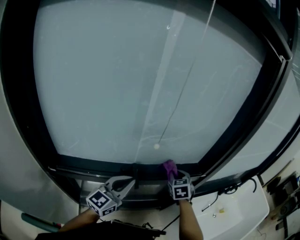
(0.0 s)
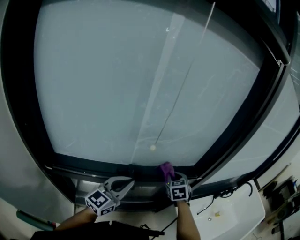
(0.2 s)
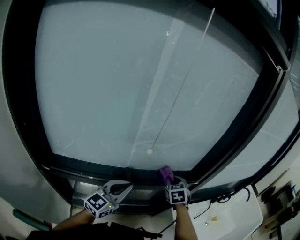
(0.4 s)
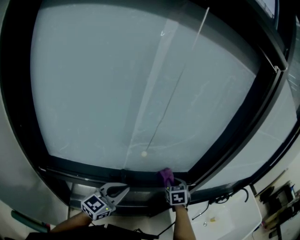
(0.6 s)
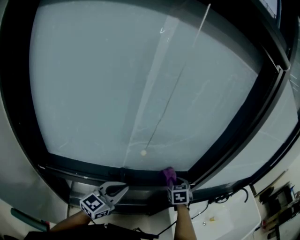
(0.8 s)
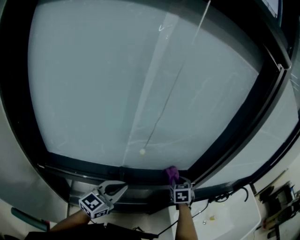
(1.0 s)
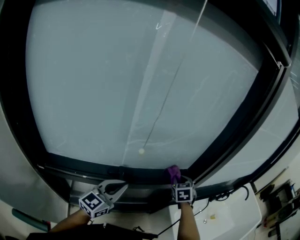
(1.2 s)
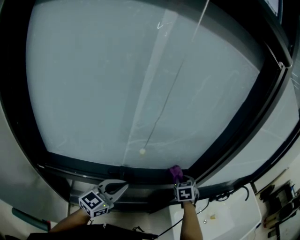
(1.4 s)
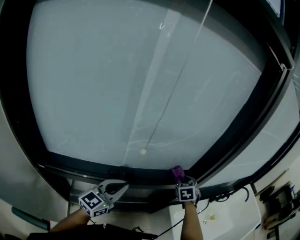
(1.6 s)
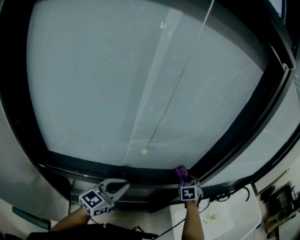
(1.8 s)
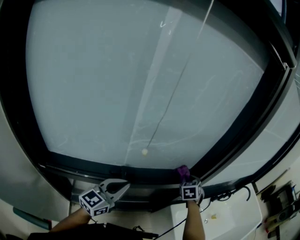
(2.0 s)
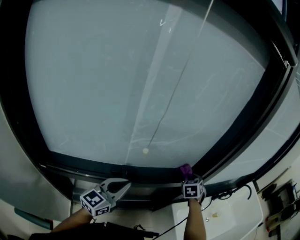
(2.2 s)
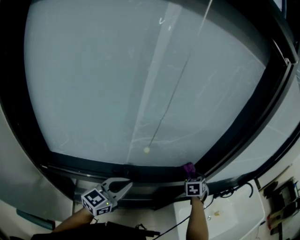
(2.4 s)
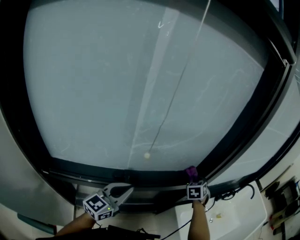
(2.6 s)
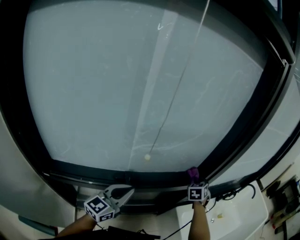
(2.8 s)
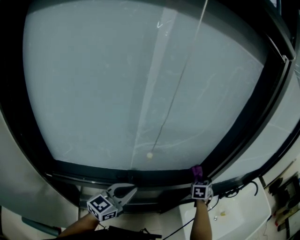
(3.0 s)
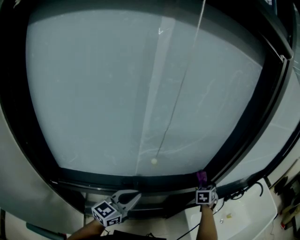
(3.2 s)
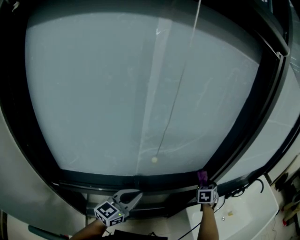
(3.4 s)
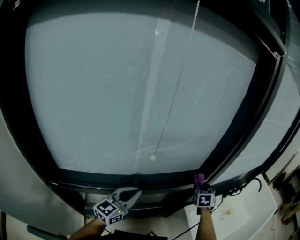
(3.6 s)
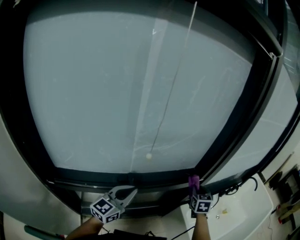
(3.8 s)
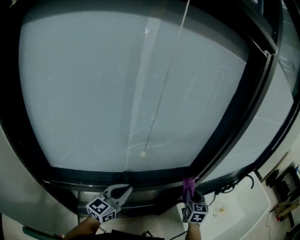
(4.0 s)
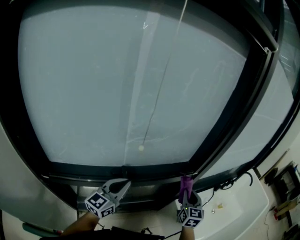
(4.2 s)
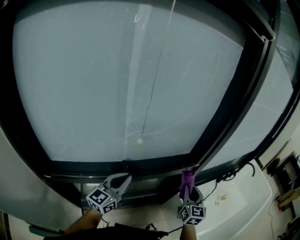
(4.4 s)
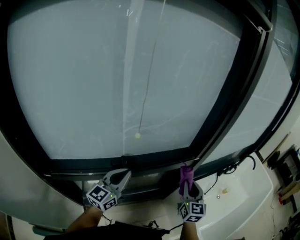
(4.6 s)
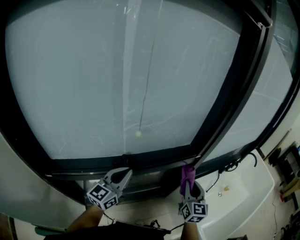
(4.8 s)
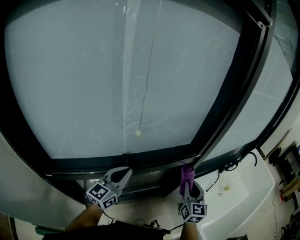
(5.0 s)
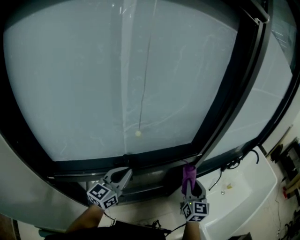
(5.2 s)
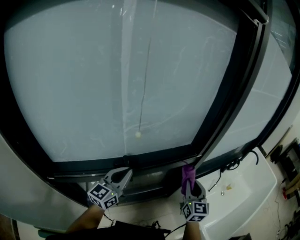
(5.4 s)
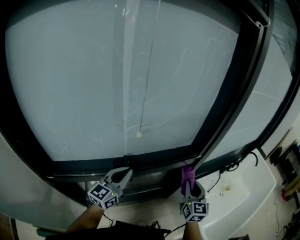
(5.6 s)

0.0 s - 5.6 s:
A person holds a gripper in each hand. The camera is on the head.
0.0 s - 1.4 s: The right gripper travels to the right and forward by about 10 cm.
1.4 s - 2.8 s: The right gripper travels to the right by roughly 5 cm.
2.8 s - 4.2 s: The right gripper moves backward, approximately 15 cm, and changes its angle by approximately 40 degrees.
4.2 s - 5.6 s: The grippers move only a little.

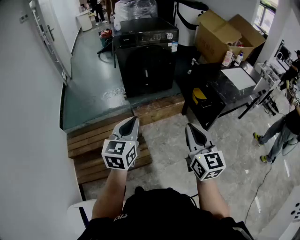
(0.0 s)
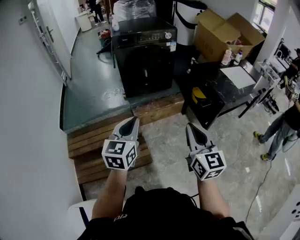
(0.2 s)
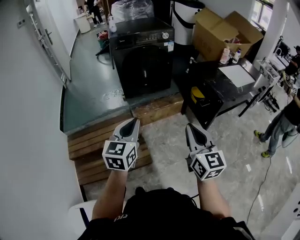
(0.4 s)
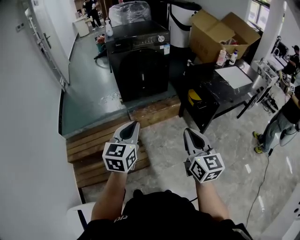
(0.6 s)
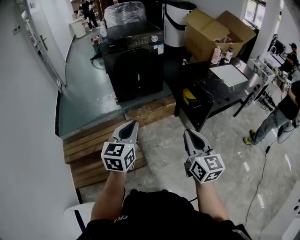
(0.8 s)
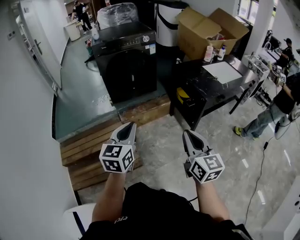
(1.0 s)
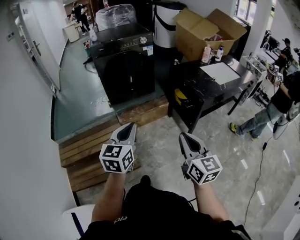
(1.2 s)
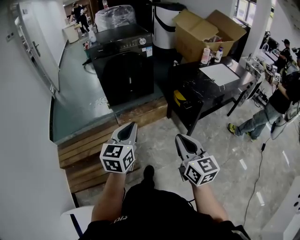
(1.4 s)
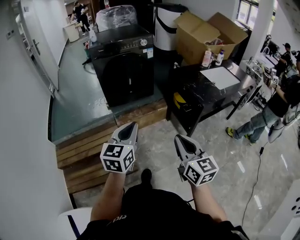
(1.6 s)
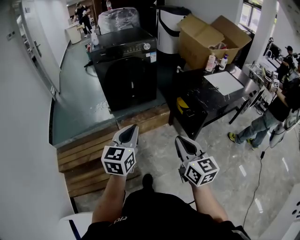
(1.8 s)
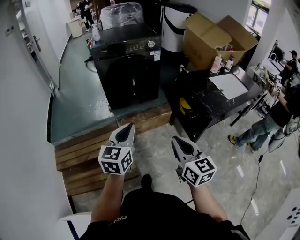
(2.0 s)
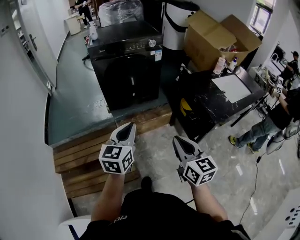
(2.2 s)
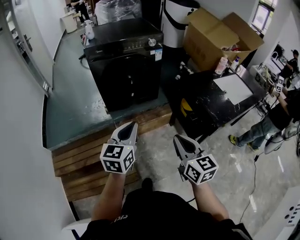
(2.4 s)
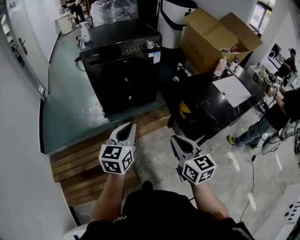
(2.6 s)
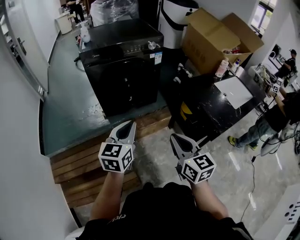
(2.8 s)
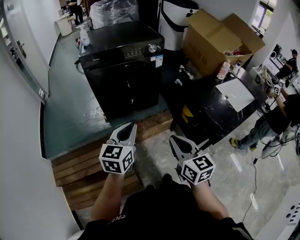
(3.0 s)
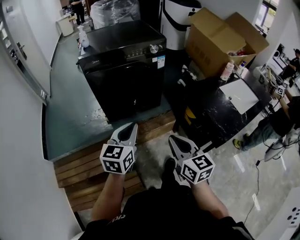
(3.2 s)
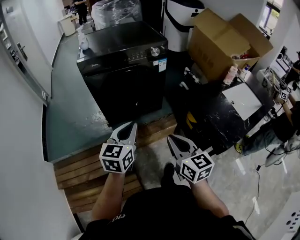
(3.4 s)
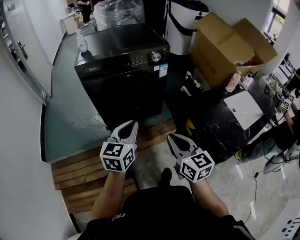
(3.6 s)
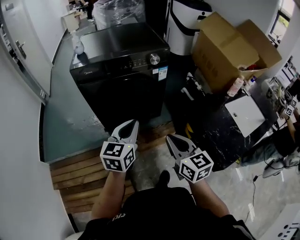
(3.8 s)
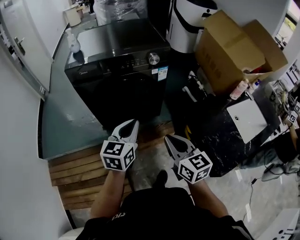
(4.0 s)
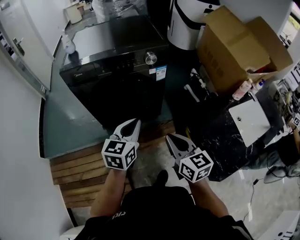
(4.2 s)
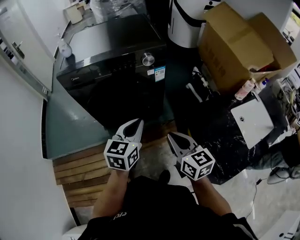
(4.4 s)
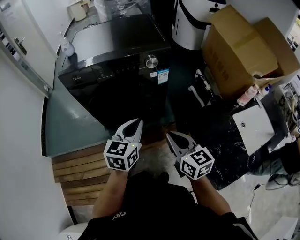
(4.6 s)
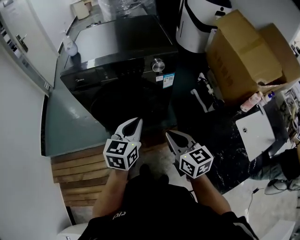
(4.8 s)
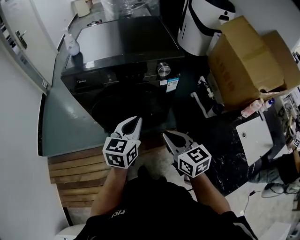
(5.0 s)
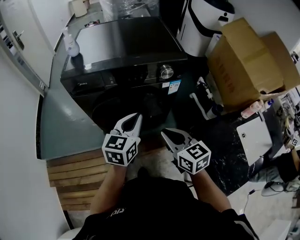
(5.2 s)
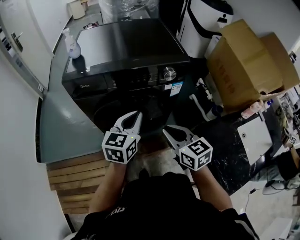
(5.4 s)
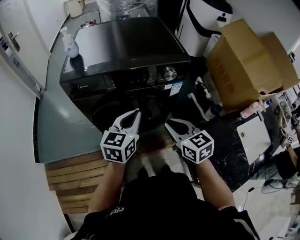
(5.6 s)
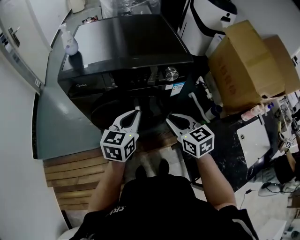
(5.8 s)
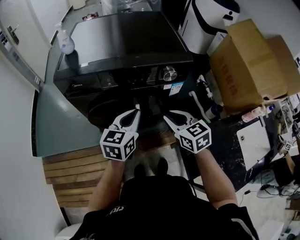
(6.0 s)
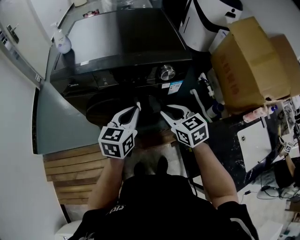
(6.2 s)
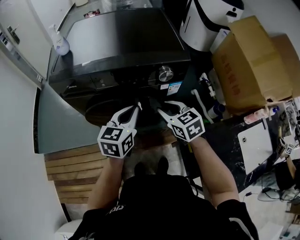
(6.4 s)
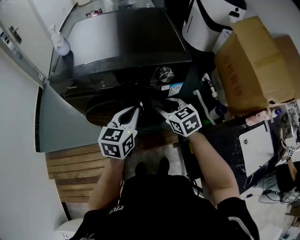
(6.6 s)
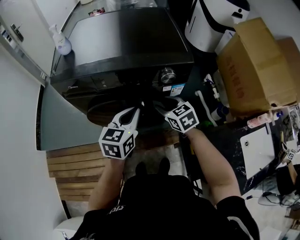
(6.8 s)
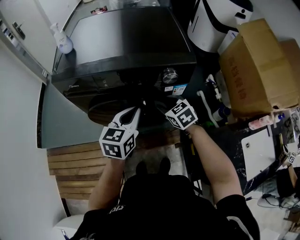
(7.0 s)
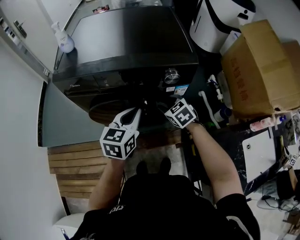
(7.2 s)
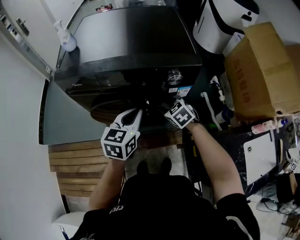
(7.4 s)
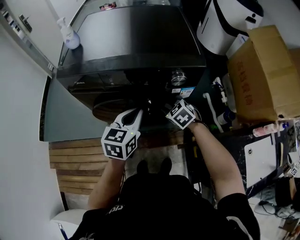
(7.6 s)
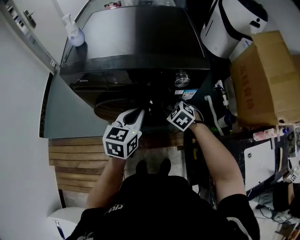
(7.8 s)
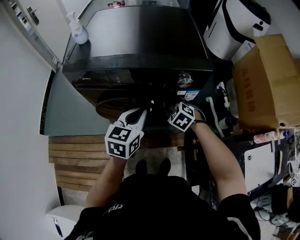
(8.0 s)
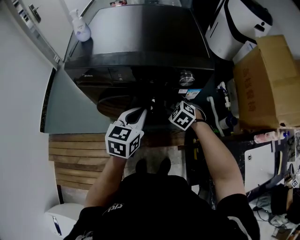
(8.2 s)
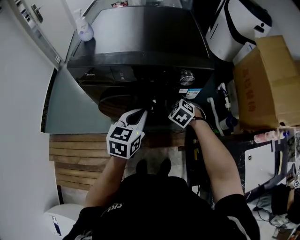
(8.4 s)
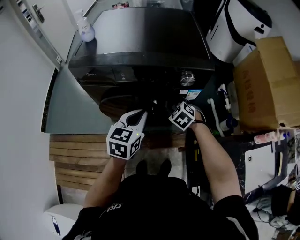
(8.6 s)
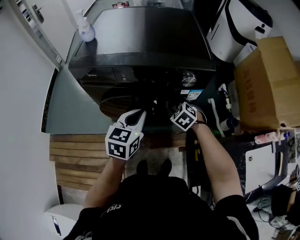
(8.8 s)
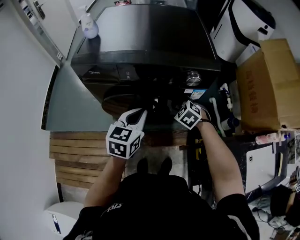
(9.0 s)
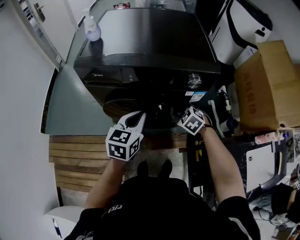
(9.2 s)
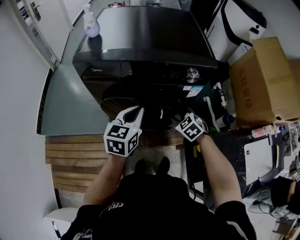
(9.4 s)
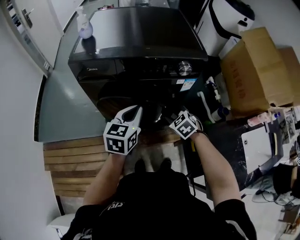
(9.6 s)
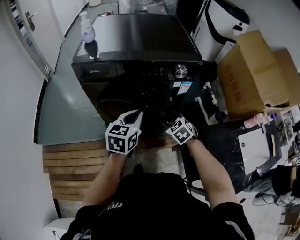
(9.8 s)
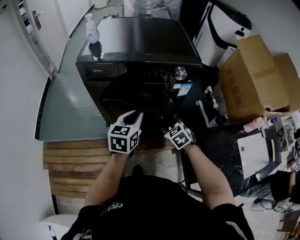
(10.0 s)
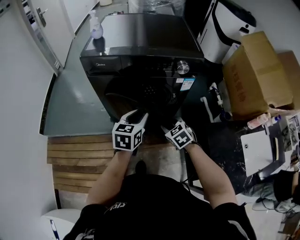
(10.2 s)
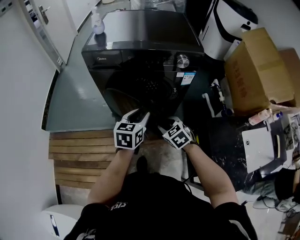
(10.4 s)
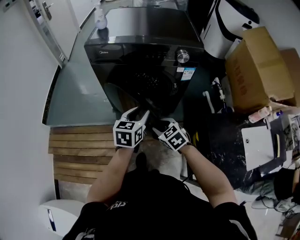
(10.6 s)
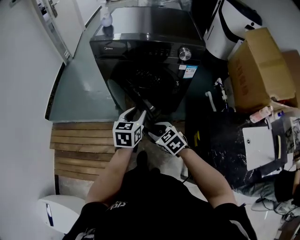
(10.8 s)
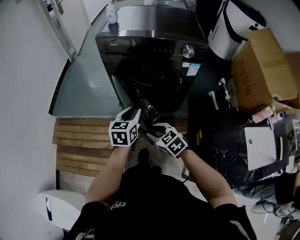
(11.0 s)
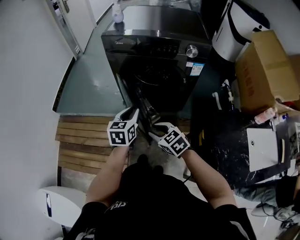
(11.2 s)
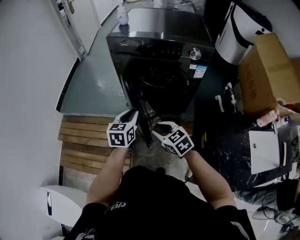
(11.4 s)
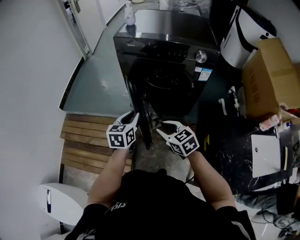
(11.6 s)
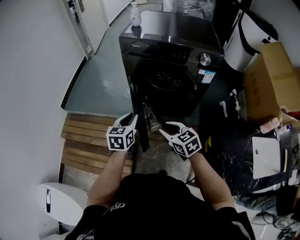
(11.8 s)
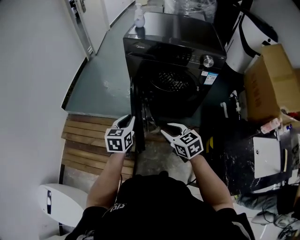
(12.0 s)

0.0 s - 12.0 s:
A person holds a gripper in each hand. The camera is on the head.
0.0 s - 1.6 s: Both grippers move to the right, some 15 cm.
1.6 s - 3.0 s: Both grippers move forward, some 30 cm.
3.0 s - 4.4 s: The left gripper moves forward and to the right, roughly 30 cm, while the right gripper shifts some 25 cm forward.
4.4 s - 6.0 s: The right gripper heads forward, covering roughly 20 cm, and changes its angle by approximately 20 degrees, while the left gripper heads forward and to the left, covering some 15 cm.
6.0 s - 7.6 s: The right gripper travels downward and forward by roughly 15 cm, turns by approximately 30 degrees, and opens its fingers.
7.6 s - 9.0 s: The grippers move only a little.
9.0 s - 10.4 s: The right gripper travels backward by some 20 cm, and turns by some 20 degrees; the left gripper moves backward, about 10 cm, and opens.
10.4 s - 12.0 s: The right gripper heads to the left, backward and upward, covering about 20 cm, and swivels some 20 degrees. Meanwhile the left gripper is displaced to the left by approximately 20 cm.

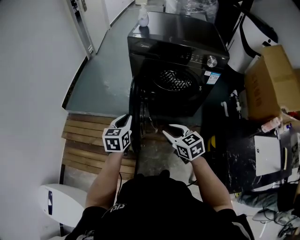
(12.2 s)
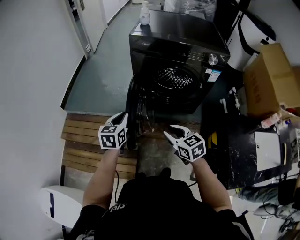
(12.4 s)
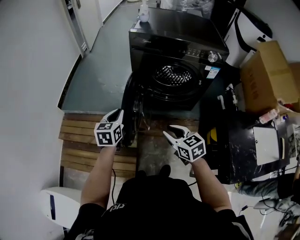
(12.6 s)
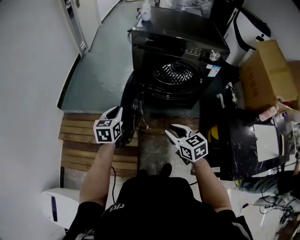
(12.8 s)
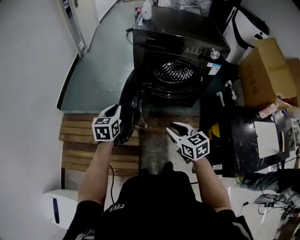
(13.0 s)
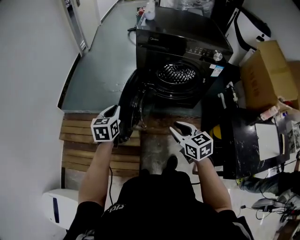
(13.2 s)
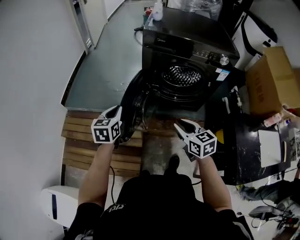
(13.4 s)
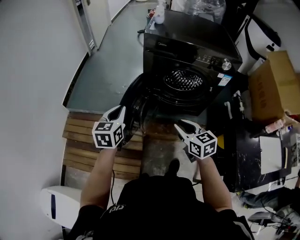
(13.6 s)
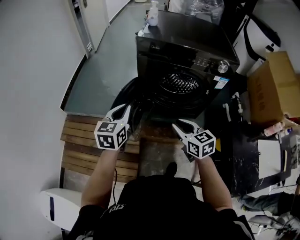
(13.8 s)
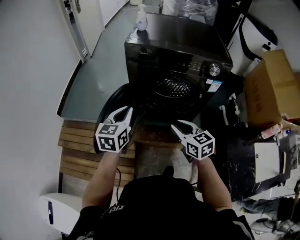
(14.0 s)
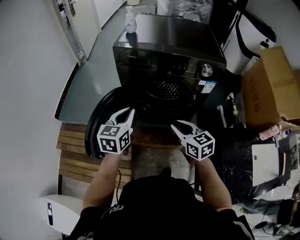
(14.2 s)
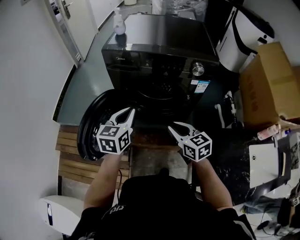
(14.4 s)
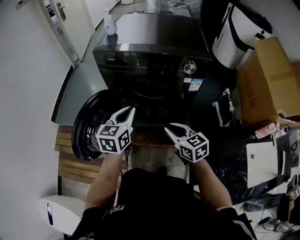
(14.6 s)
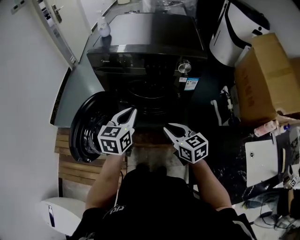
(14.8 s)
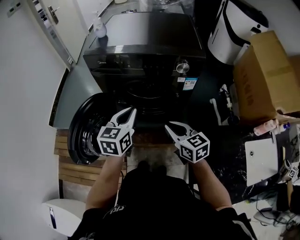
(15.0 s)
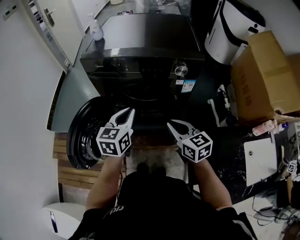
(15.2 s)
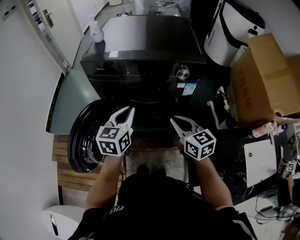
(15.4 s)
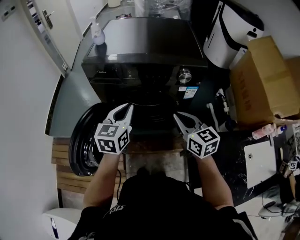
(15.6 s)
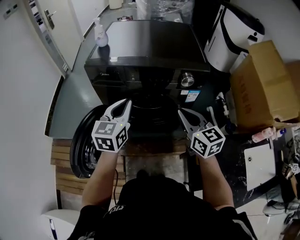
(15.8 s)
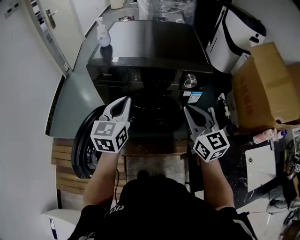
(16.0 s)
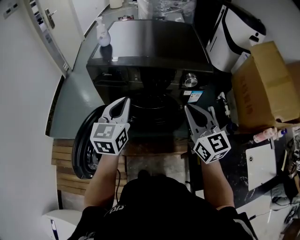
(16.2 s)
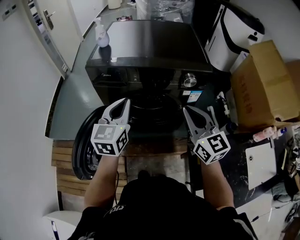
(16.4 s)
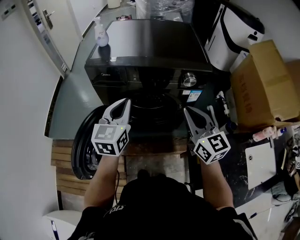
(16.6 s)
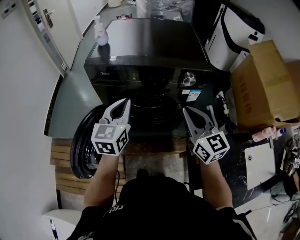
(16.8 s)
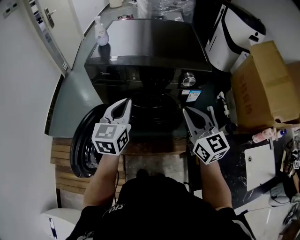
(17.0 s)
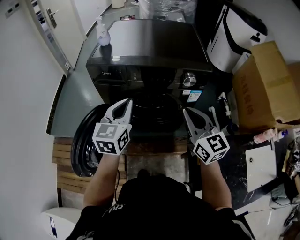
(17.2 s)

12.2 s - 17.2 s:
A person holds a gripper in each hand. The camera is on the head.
12.2 s - 13.8 s: The left gripper moves upward and forward, about 10 cm, and travels to the left and back again, roughly 15 cm each way. Meanwhile the right gripper is displaced forward by some 5 cm.
13.8 s - 15.6 s: Both grippers move to the right and forward, some 25 cm. The right gripper closes its fingers.
15.6 s - 17.2 s: The right gripper goes approximately 5 cm upward.

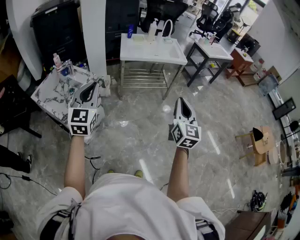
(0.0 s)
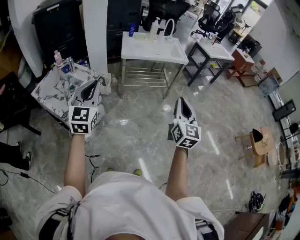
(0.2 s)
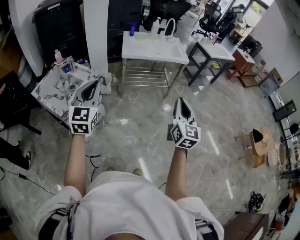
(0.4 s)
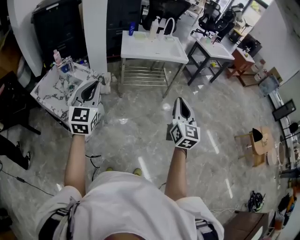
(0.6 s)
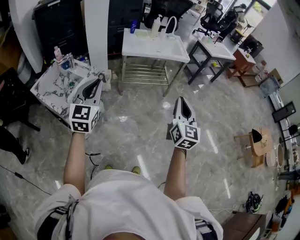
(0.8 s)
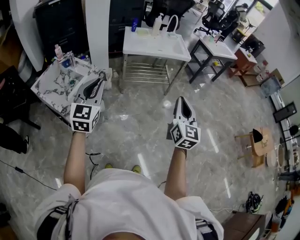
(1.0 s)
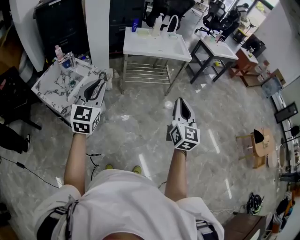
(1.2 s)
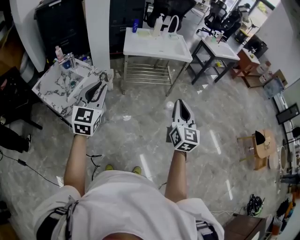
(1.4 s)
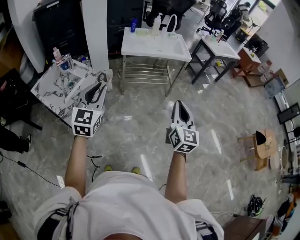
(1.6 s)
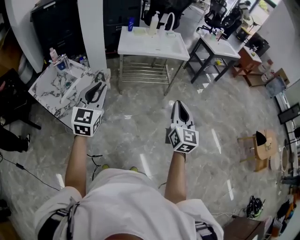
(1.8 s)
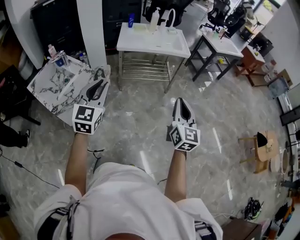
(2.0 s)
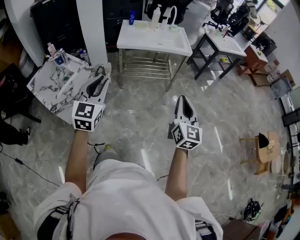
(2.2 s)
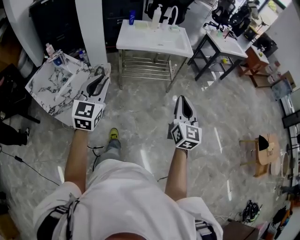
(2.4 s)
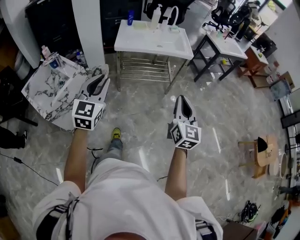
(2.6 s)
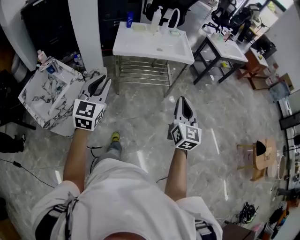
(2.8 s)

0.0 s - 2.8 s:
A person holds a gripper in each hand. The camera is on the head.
0.0 s - 1.4 s: The left gripper moves approximately 5 cm.
1.4 s - 2.8 s: Both grippers move forward and to the right, approximately 25 cm.
